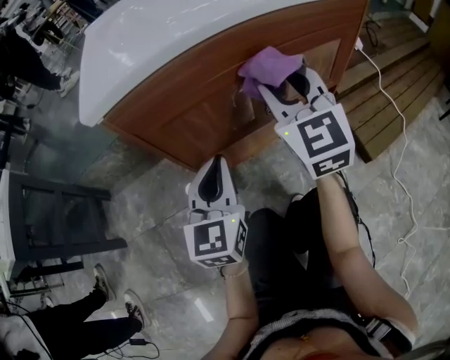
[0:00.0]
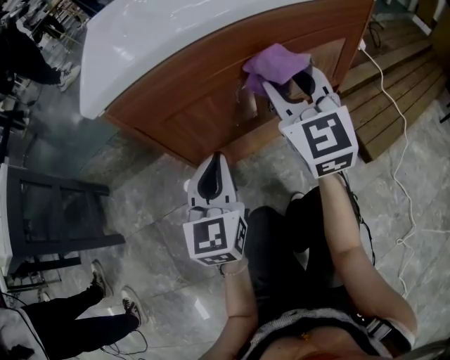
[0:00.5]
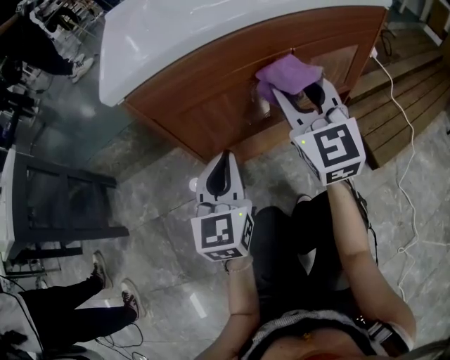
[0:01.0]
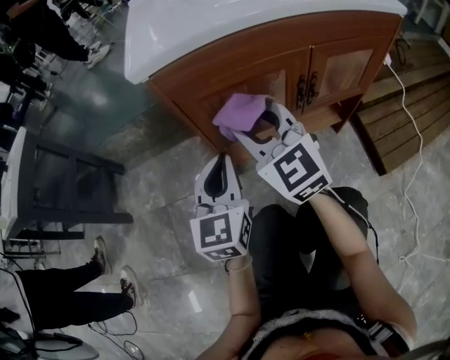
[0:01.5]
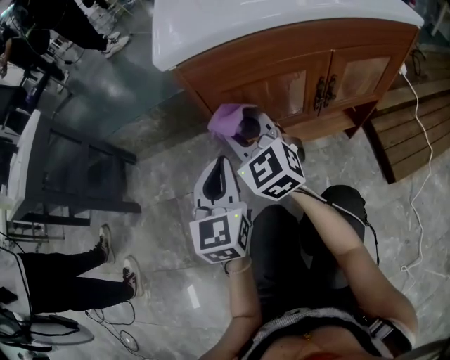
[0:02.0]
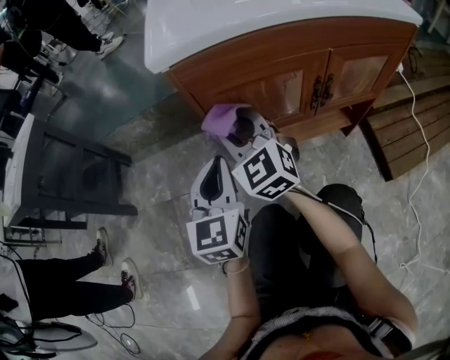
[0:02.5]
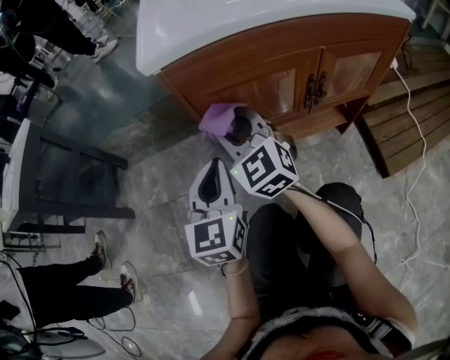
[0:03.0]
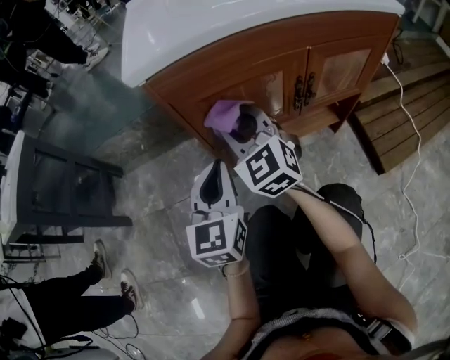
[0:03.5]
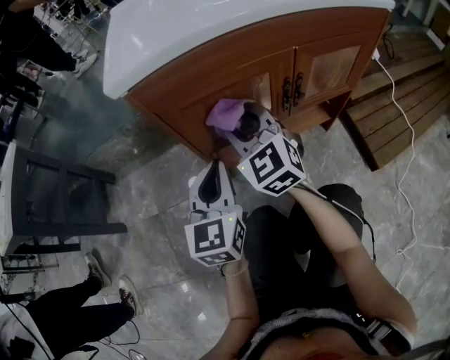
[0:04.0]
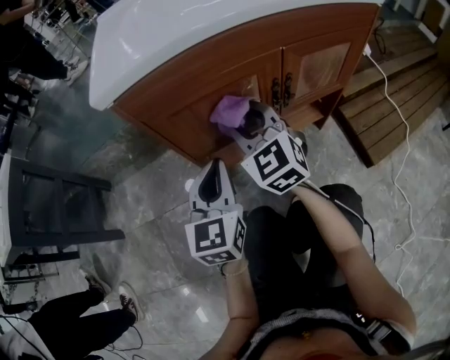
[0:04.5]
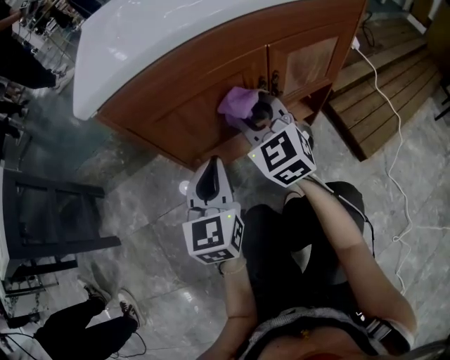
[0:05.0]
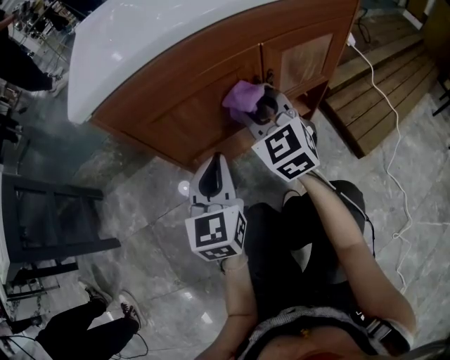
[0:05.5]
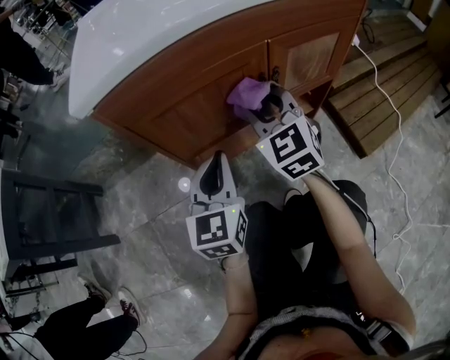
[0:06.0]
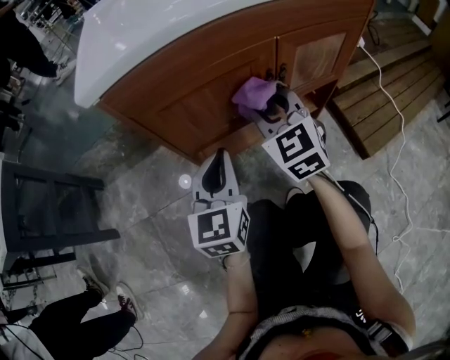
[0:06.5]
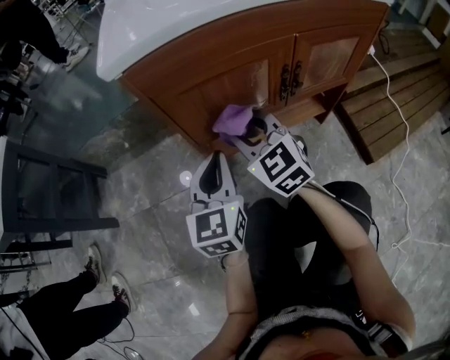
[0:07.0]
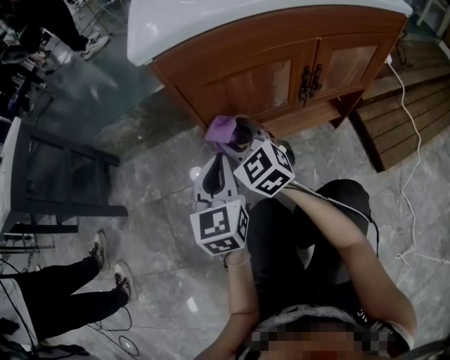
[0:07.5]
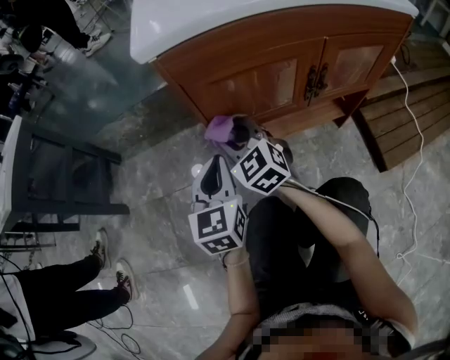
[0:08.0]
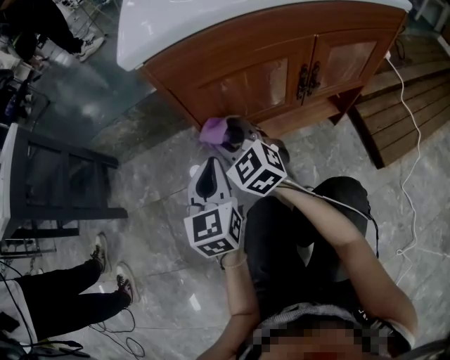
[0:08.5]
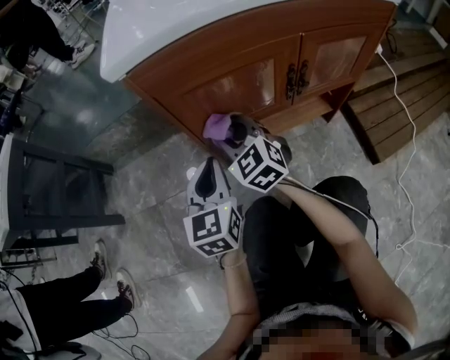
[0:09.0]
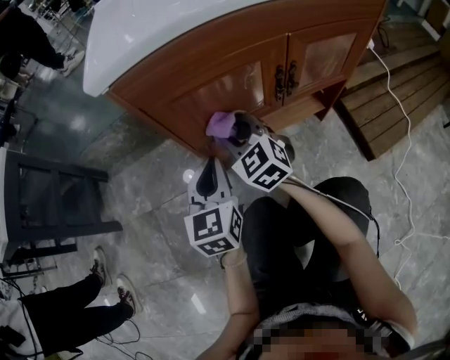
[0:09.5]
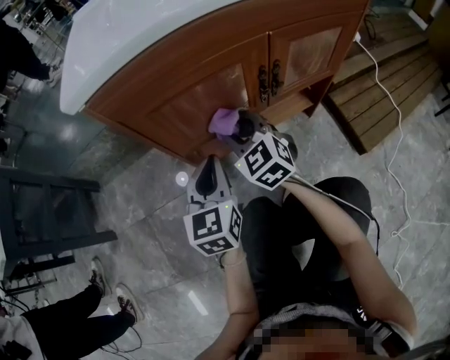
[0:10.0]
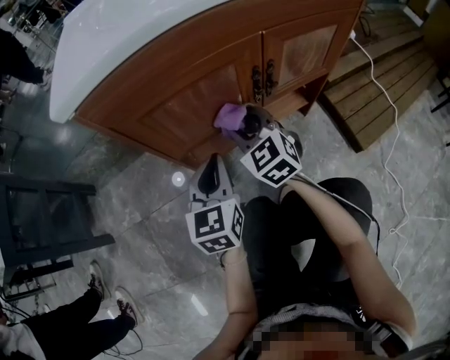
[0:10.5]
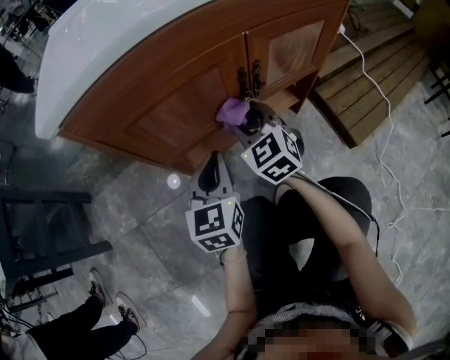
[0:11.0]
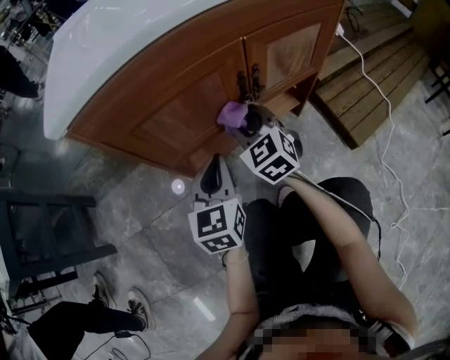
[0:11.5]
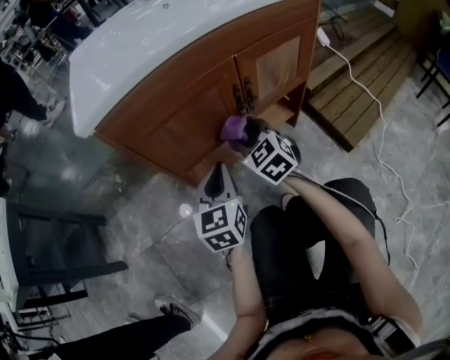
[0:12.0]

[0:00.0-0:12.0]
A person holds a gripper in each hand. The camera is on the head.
0:00.0 to 0:02.0: The left gripper shifts about 10 cm to the left. Meanwhile the right gripper moves to the left and downward, some 25 cm, and rotates about 30 degrees.
0:02.0 to 0:04.0: Both grippers travel together to the right, some 5 cm.
0:04.0 to 0:06.0: The right gripper goes about 10 cm to the right. Meanwhile the left gripper goes about 5 cm to the right.
0:06.0 to 0:08.0: The right gripper heads to the left, covering about 20 cm, and swivels approximately 20 degrees. Meanwhile the left gripper heads to the left, covering some 10 cm.
0:08.0 to 0:10.0: Both grippers move to the right, roughly 10 cm.
0:10.0 to 0:12.0: The right gripper moves to the right, approximately 5 cm.

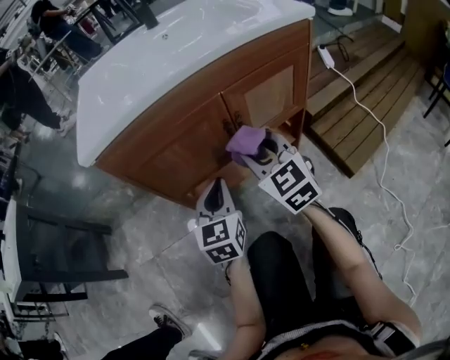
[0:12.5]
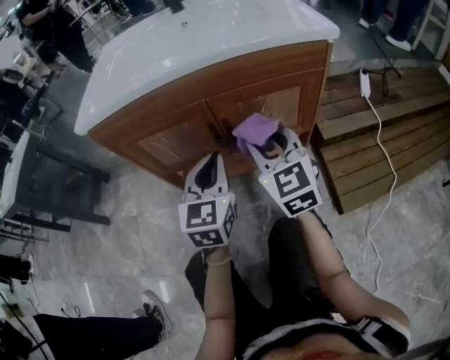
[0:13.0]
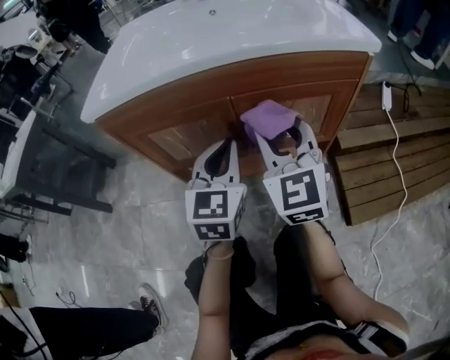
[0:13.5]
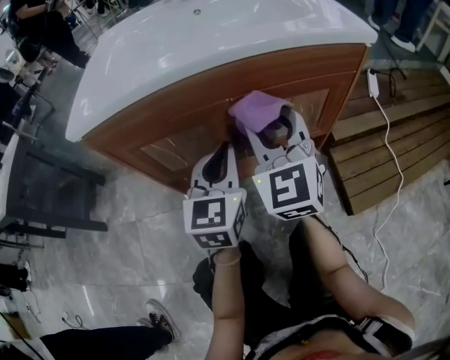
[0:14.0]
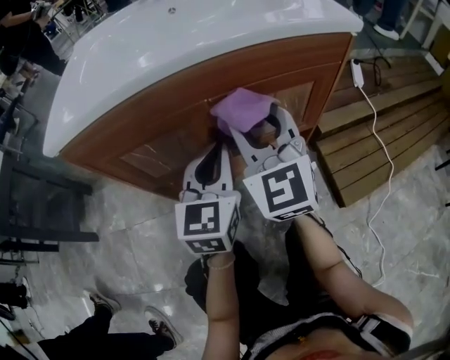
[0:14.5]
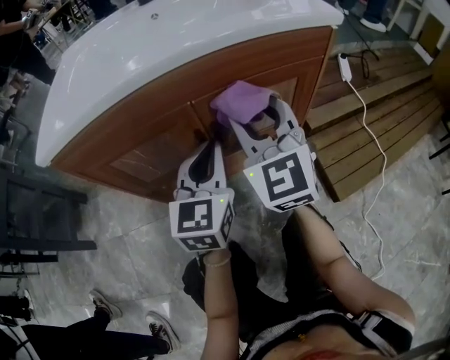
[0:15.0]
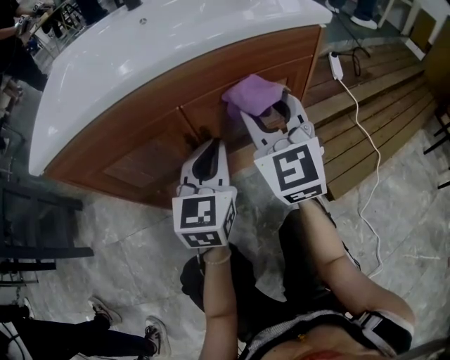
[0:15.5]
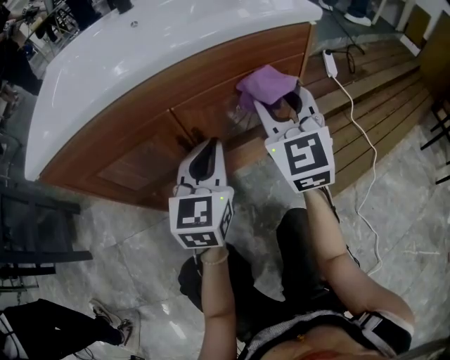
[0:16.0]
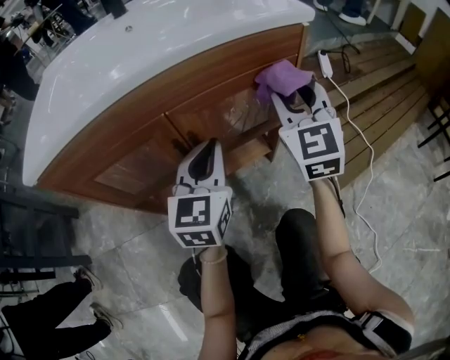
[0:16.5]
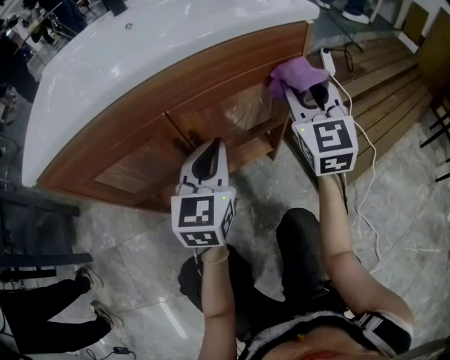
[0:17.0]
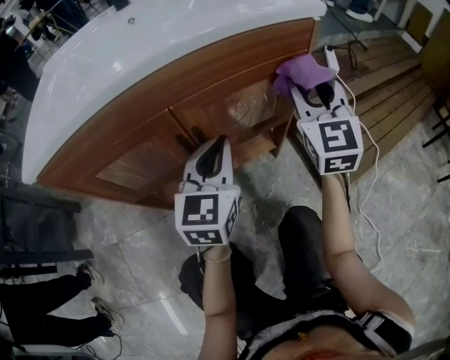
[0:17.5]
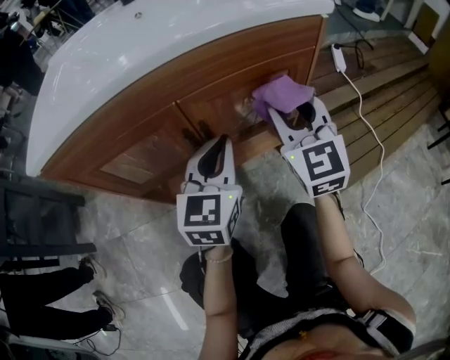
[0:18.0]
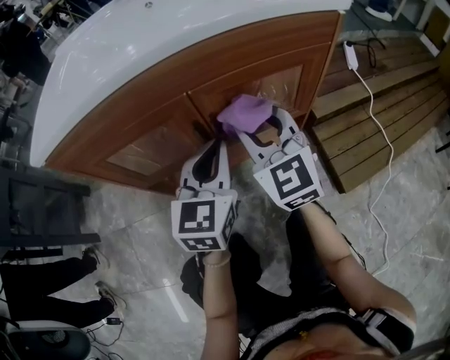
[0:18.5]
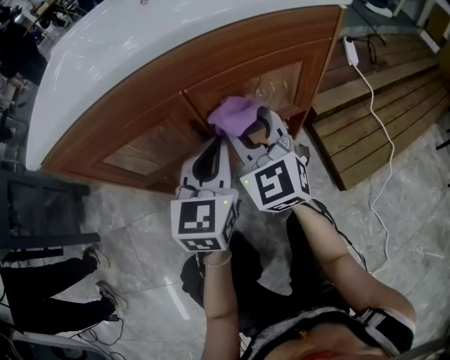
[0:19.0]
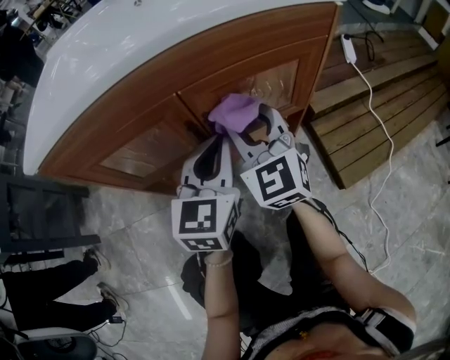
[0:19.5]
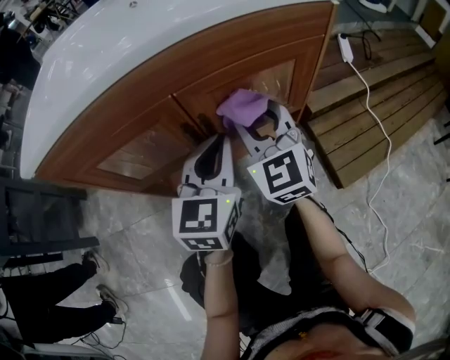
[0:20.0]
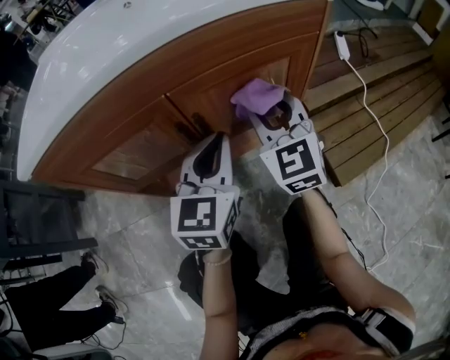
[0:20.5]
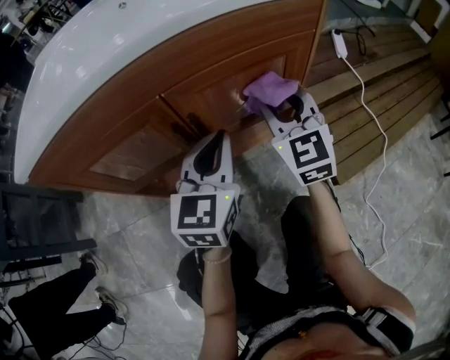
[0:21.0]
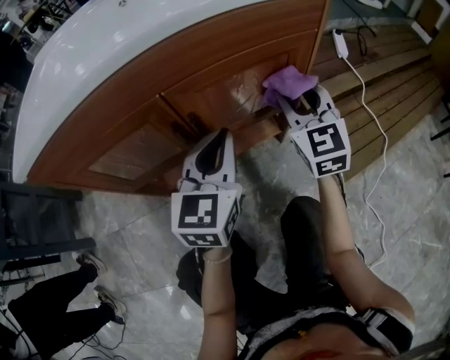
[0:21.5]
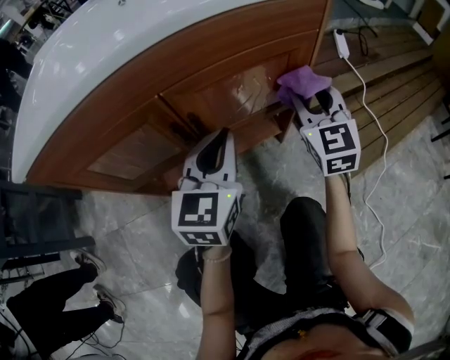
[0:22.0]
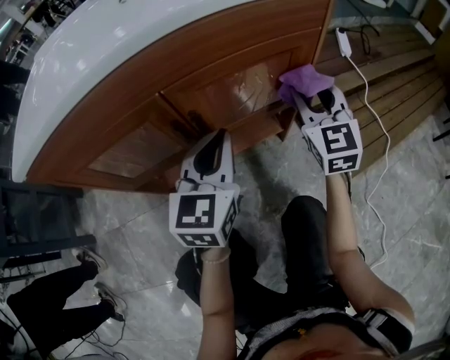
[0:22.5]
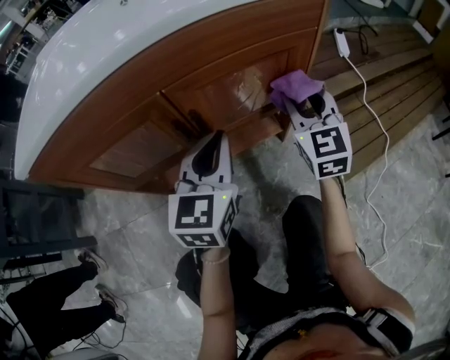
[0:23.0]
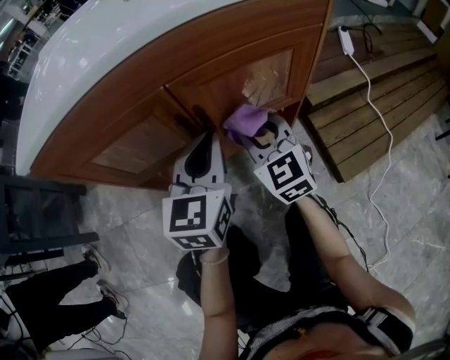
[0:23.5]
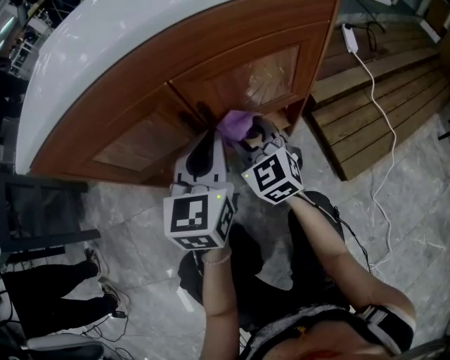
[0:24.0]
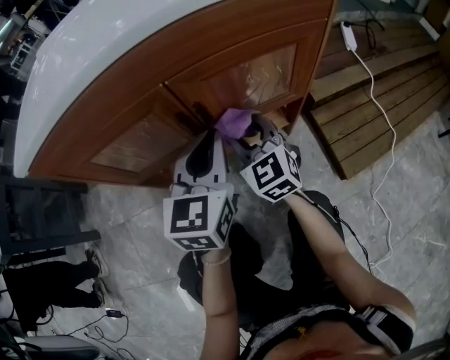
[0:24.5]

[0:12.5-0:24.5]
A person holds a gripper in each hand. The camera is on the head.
0:12.5 to 0:14.5: The left gripper heads to the right, upward and forward, covering about 15 cm. The right gripper goes about 10 cm upward, forward and to the right.
0:14.5 to 0:16.5: The left gripper travels to the right by approximately 5 cm; the right gripper is displaced to the right by roughly 15 cm.
0:16.5 to 0:18.5: The right gripper moves to the left, downward and backward, about 15 cm, and swivels some 20 degrees.
0:18.5 to 0:20.5: The right gripper moves to the right, about 5 cm.
0:20.5 to 0:22.5: The right gripper is displaced to the right by approximately 10 cm.
0:22.5 to 0:24.5: The right gripper shifts some 20 cm to the left and downward, and rotates about 20 degrees.

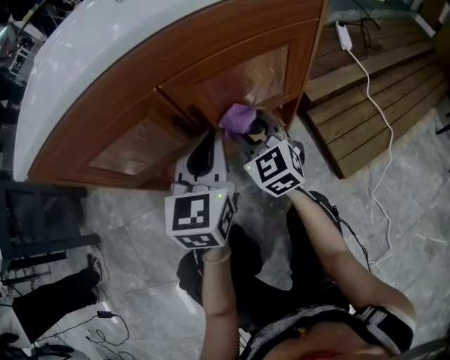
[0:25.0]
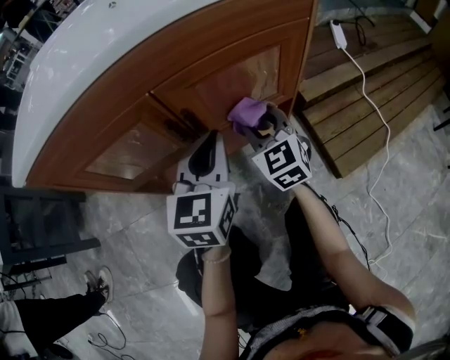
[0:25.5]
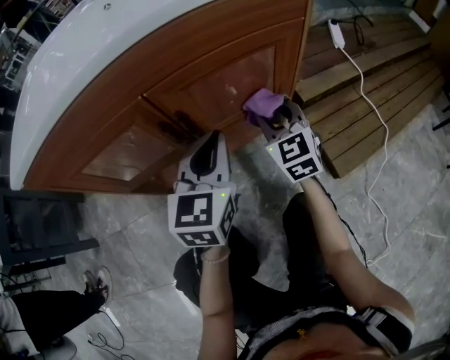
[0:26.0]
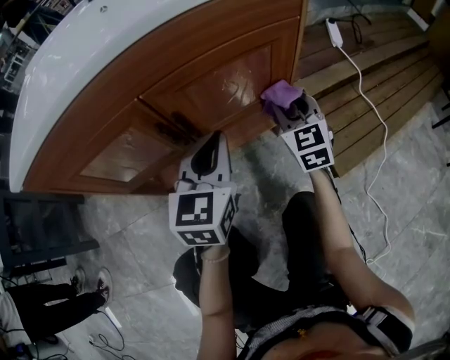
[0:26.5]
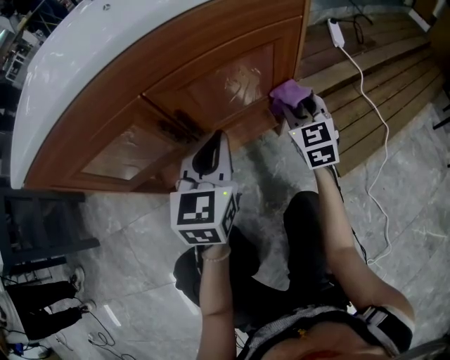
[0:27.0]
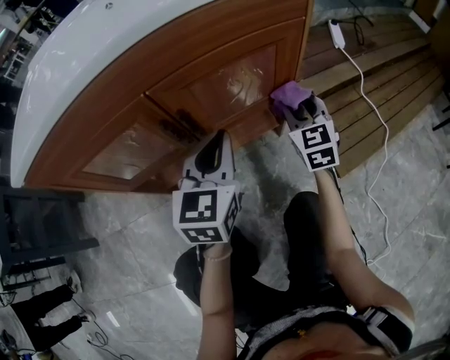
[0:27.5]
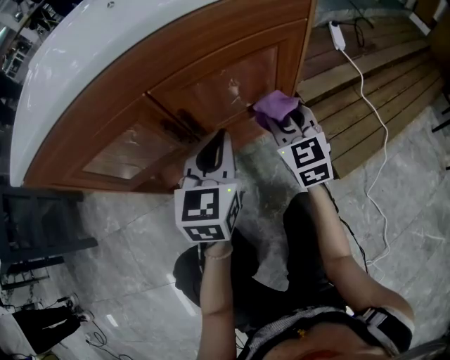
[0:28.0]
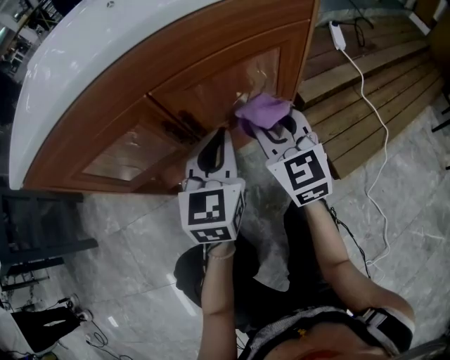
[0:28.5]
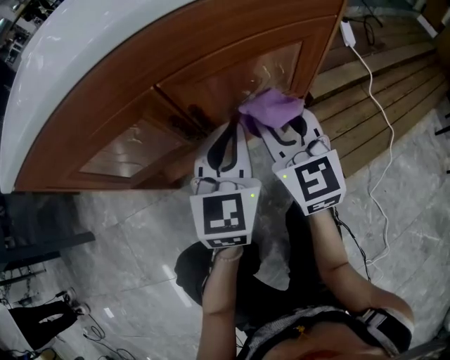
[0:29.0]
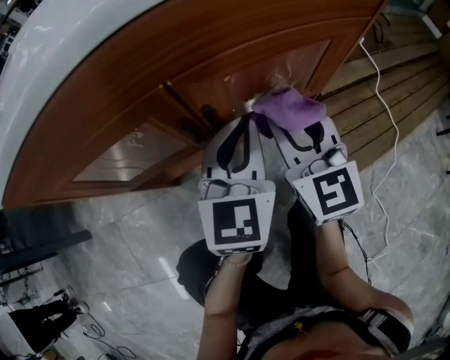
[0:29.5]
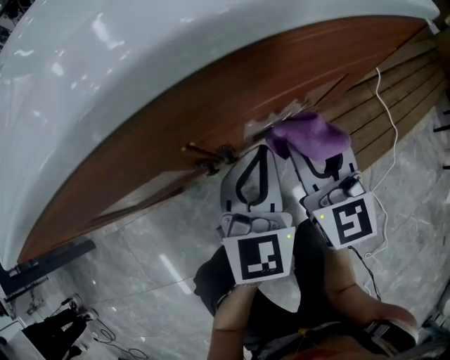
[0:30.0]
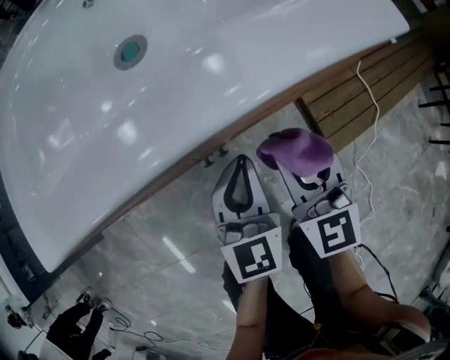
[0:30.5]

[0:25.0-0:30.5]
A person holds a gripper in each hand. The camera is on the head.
0:25.0 to 0:27.0: The right gripper is displaced to the right by approximately 15 cm.
0:27.0 to 0:28.5: The right gripper heads to the left, upward and backward, covering some 15 cm.
0:28.5 to 0:30.5: The right gripper shifts roughly 5 cm upward.
